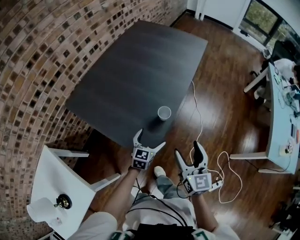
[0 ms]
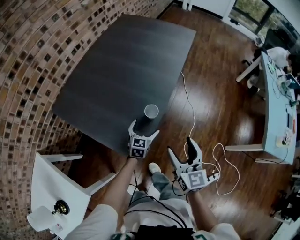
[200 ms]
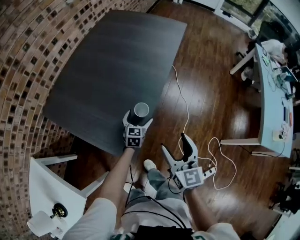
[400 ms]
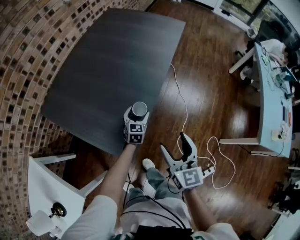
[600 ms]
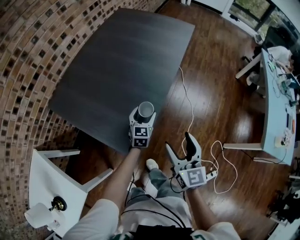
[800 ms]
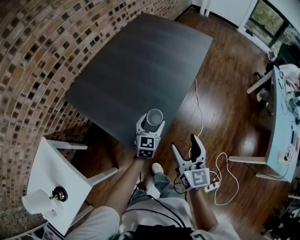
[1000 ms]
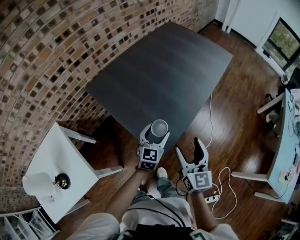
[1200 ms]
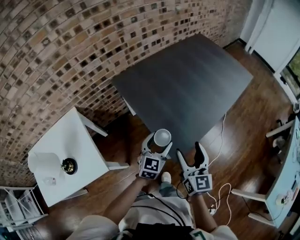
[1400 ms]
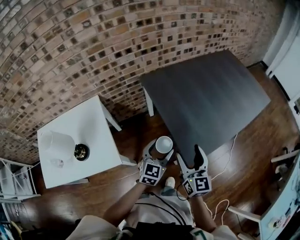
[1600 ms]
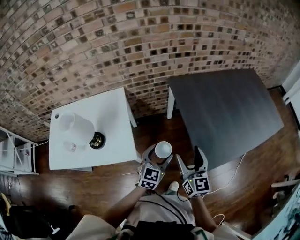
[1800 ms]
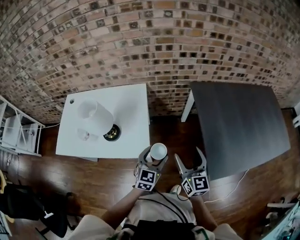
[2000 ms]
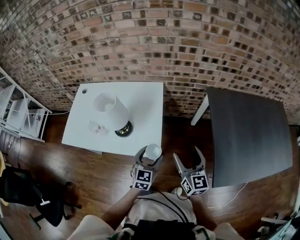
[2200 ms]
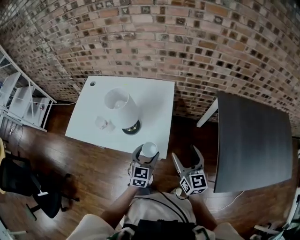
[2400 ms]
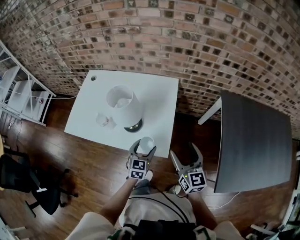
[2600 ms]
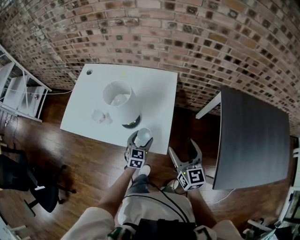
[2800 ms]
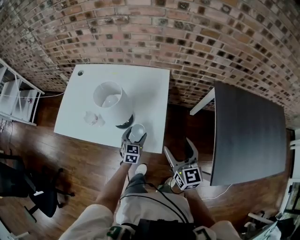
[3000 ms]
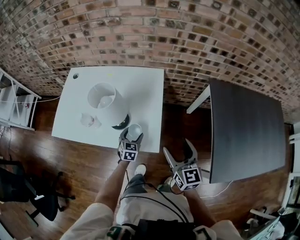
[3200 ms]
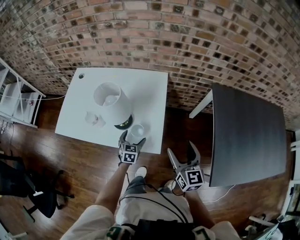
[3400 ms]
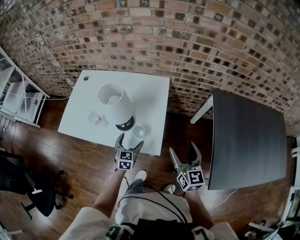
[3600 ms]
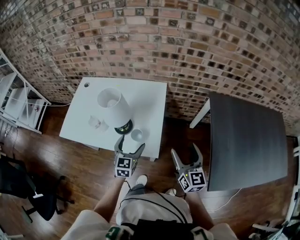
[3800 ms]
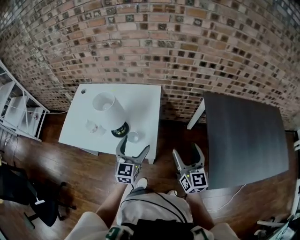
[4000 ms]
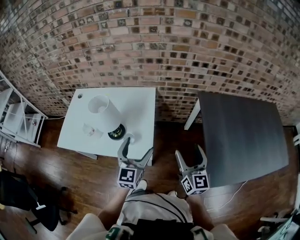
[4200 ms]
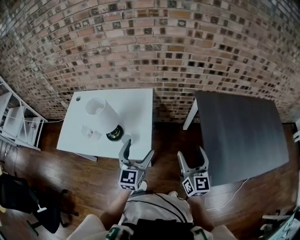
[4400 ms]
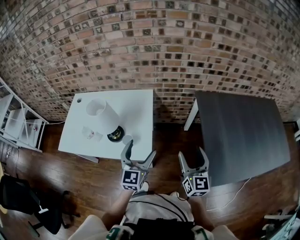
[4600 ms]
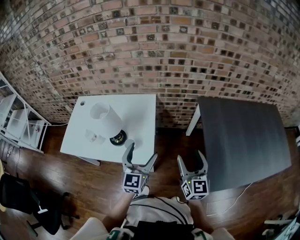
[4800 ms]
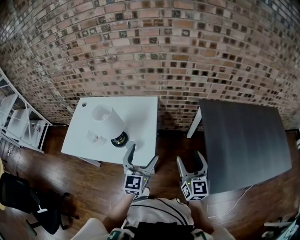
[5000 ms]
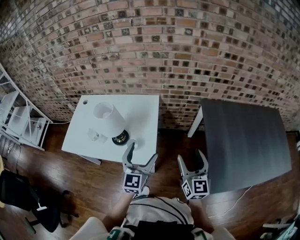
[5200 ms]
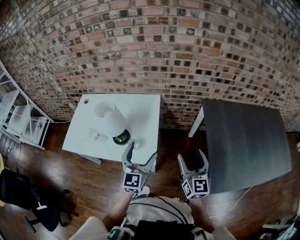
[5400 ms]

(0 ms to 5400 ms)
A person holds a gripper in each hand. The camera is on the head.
0 ms - 1400 ms: The left gripper shifts roughly 20 cm to the left, upward and backward, turns by some 30 degrees, and closes up, while the right gripper heads to the left, covering approximately 15 cm, and turns by about 20 degrees.
1400 ms - 2800 ms: Both grippers are carried about 50 cm. The right gripper turns by about 50 degrees. Meanwhile the left gripper swivels roughly 60 degrees.
2800 ms - 4000 ms: The left gripper is displaced upward by some 15 cm. Meanwhile the right gripper travels to the right and upward by approximately 10 cm.
4000 ms - 5400 ms: The right gripper changes place by about 5 cm. The left gripper heads upward and to the right, covering some 10 cm.

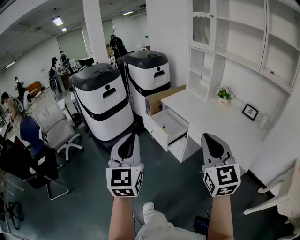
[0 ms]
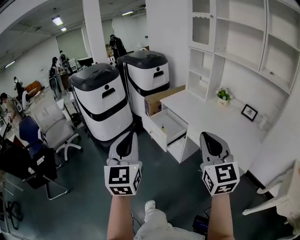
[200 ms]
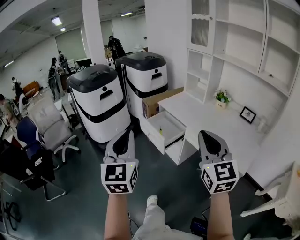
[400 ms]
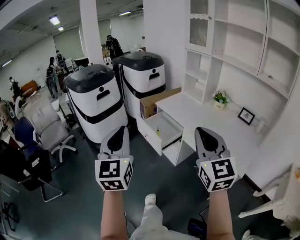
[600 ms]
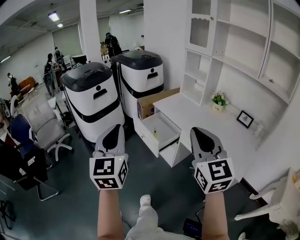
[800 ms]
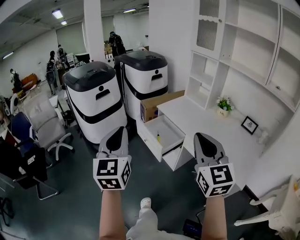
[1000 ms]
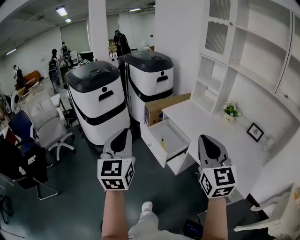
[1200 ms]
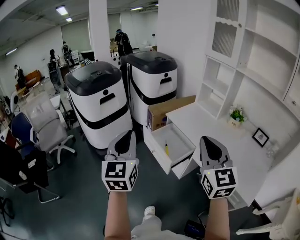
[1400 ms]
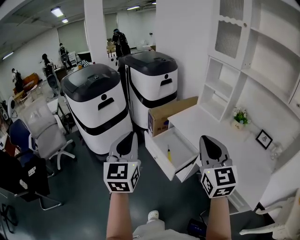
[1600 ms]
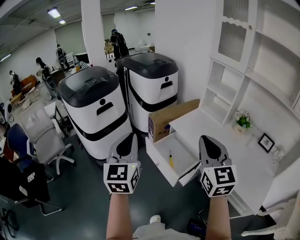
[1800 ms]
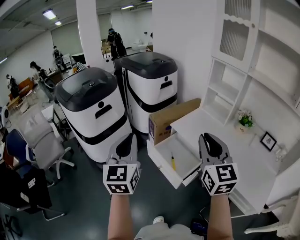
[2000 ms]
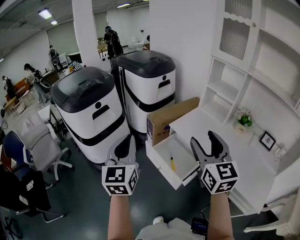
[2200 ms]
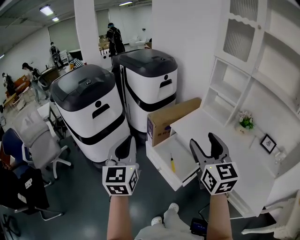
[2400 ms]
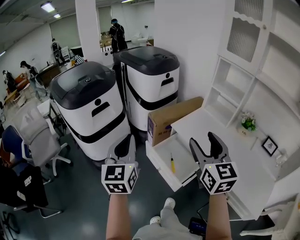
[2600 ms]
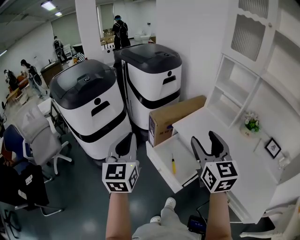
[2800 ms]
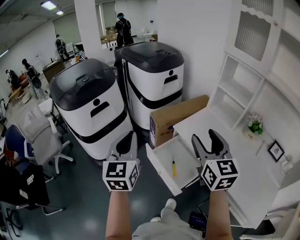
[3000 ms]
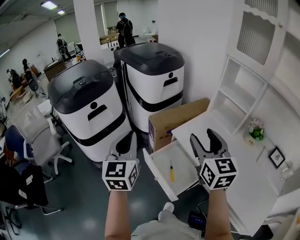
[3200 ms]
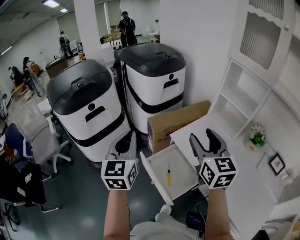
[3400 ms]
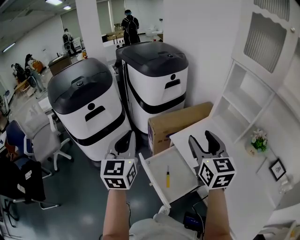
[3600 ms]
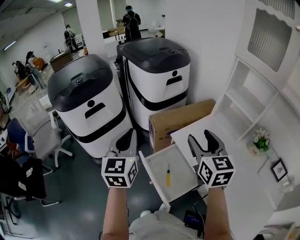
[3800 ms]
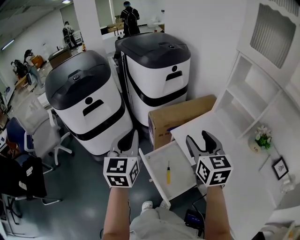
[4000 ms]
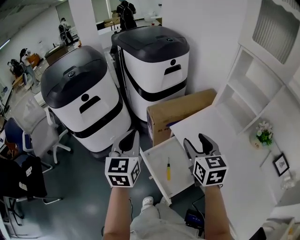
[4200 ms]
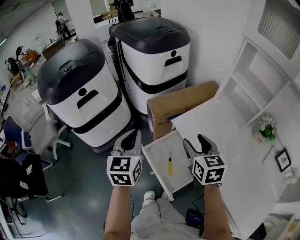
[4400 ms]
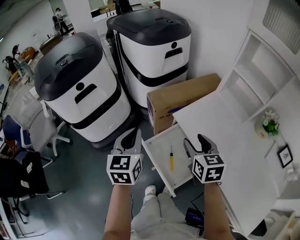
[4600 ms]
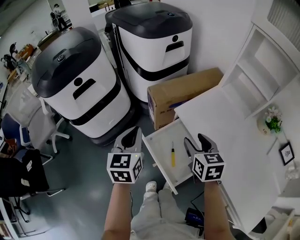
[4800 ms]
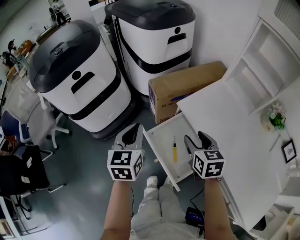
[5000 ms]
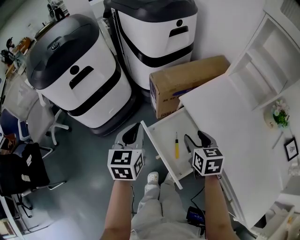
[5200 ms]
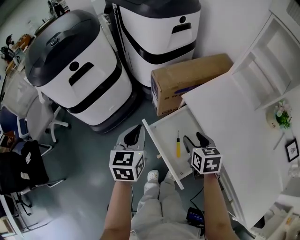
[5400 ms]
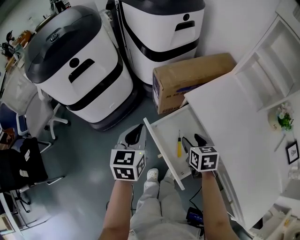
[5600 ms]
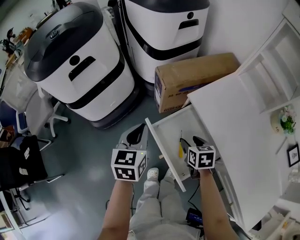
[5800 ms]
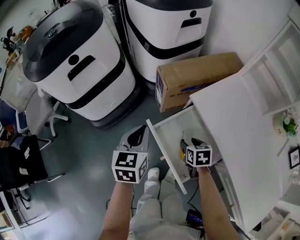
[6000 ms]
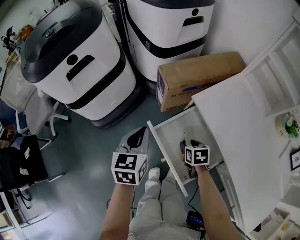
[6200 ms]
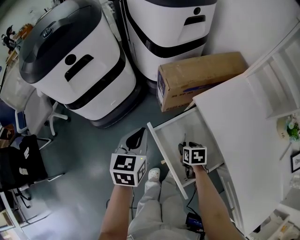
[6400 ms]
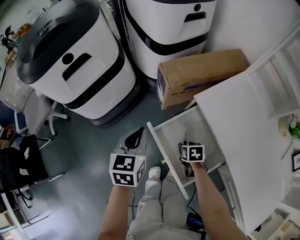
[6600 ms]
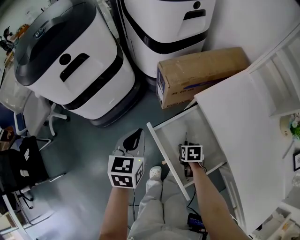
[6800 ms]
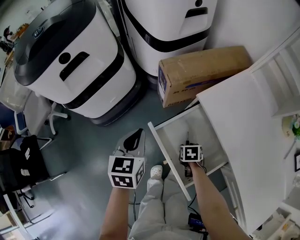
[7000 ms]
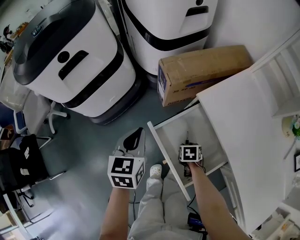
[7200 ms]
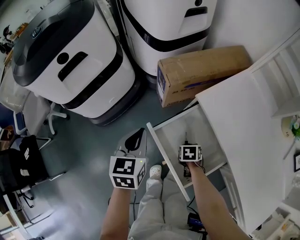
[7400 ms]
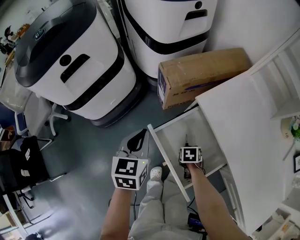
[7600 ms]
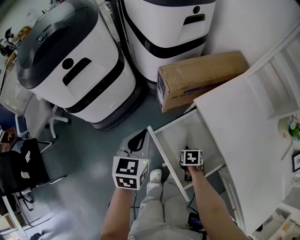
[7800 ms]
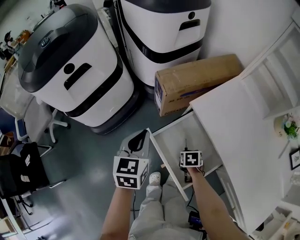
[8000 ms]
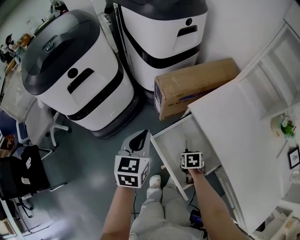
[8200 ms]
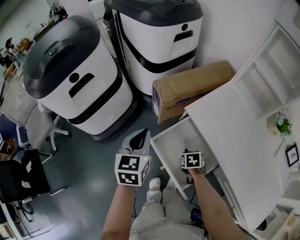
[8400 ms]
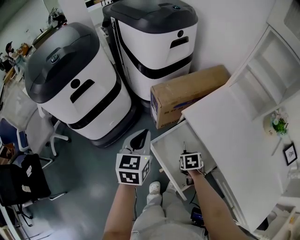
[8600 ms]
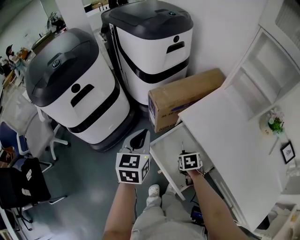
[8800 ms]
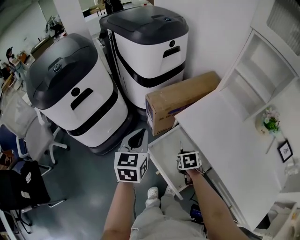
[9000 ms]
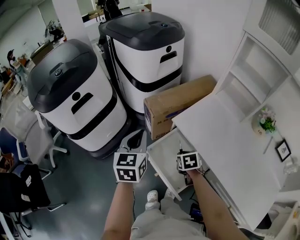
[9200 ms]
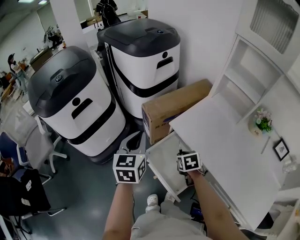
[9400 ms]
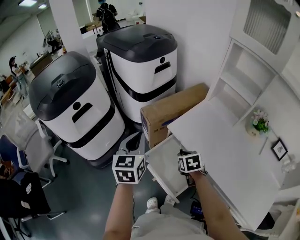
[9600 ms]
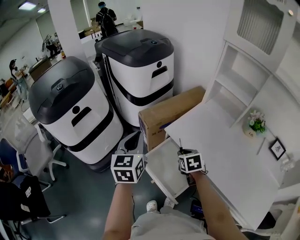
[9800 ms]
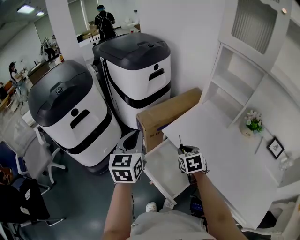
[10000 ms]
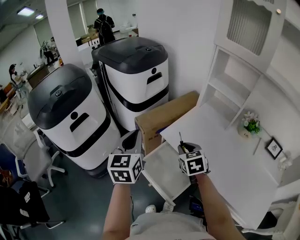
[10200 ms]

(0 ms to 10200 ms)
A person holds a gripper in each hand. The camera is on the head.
0 ms - 1400 ms: Both grippers move forward, about 20 cm.
1400 ms - 3000 ms: The grippers both shift forward by approximately 25 cm. The right gripper opens up.
3000 ms - 4400 ms: The right gripper heads downward and forward, covering about 20 cm, and changes its angle by some 20 degrees, while the left gripper travels downward, forward and to the right by about 15 cm.
4400 ms - 5800 ms: The right gripper shifts about 25 cm downward, and turns by roughly 30 degrees; the left gripper goes roughly 15 cm downward.
5800 ms - 7200 ms: The right gripper is displaced downward by some 15 cm, and rotates about 20 degrees; the left gripper travels downward by some 5 cm.
7200 ms - 8800 ms: The two grippers go about 10 cm upward.
8800 ms - 10200 ms: The left gripper goes approximately 15 cm upward, while the right gripper shifts roughly 25 cm upward, and changes its angle by roughly 30 degrees.

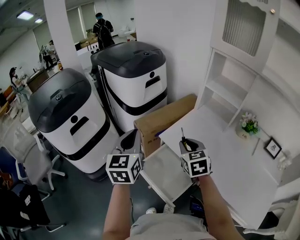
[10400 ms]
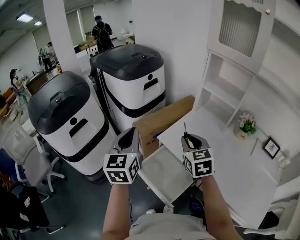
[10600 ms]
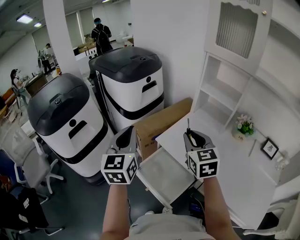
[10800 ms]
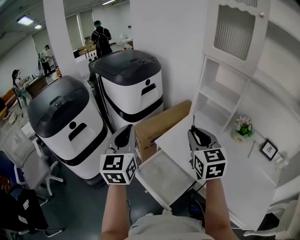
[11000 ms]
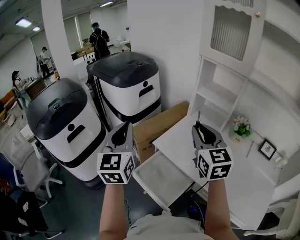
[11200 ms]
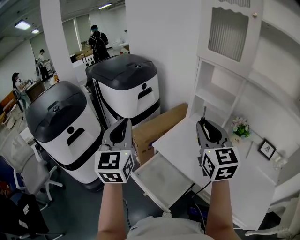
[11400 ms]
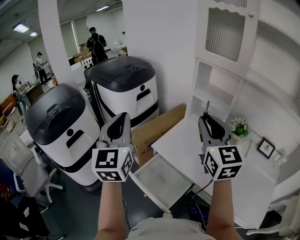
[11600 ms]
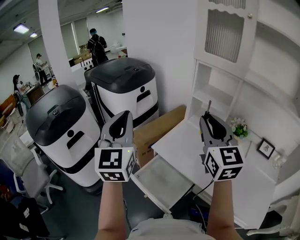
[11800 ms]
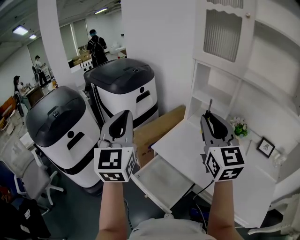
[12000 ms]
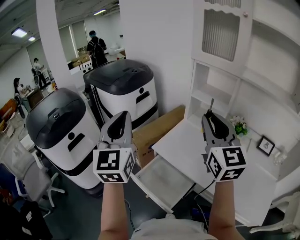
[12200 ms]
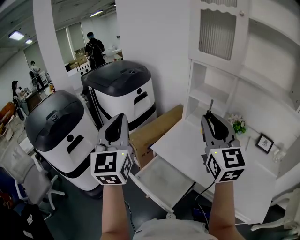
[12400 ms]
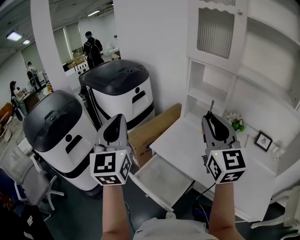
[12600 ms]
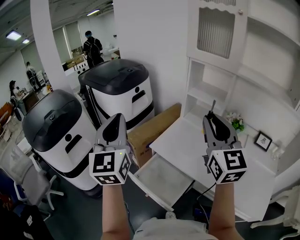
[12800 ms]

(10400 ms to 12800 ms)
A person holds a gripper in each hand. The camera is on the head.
10400 ms - 11600 ms: The right gripper travels upward by some 25 cm, and tilts its fingers roughly 30 degrees upward; the left gripper heads upward, covering about 15 cm, and swivels approximately 20 degrees.
11600 ms - 12800 ms: There are only small adjustments of the grippers.

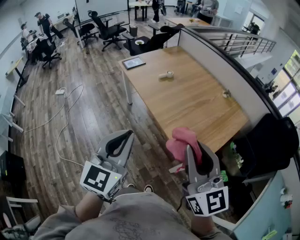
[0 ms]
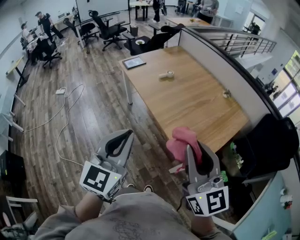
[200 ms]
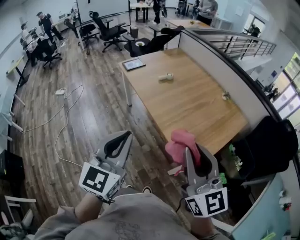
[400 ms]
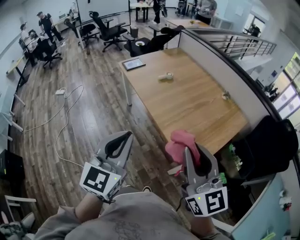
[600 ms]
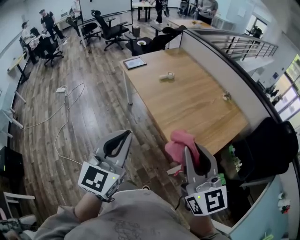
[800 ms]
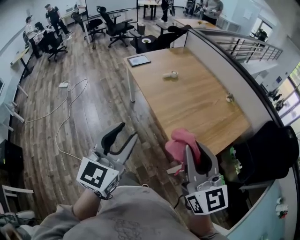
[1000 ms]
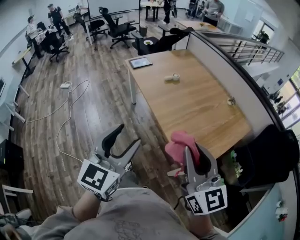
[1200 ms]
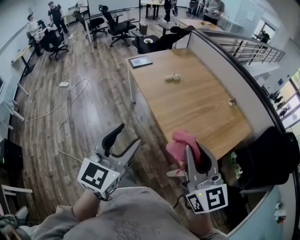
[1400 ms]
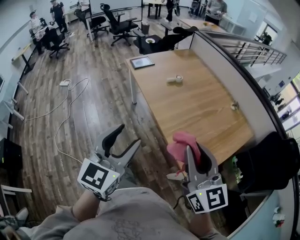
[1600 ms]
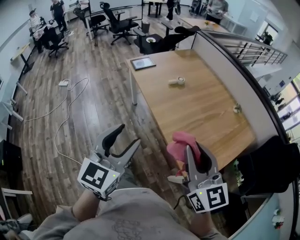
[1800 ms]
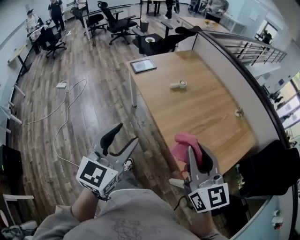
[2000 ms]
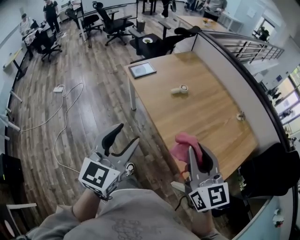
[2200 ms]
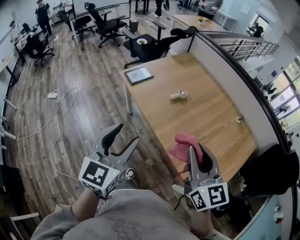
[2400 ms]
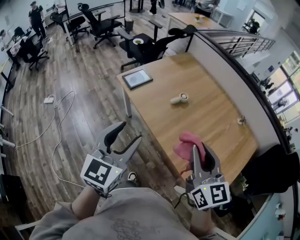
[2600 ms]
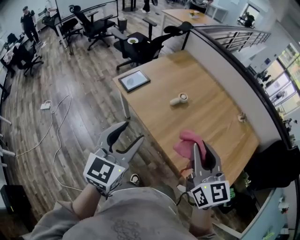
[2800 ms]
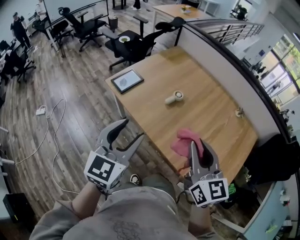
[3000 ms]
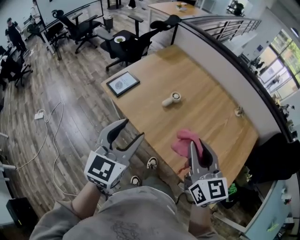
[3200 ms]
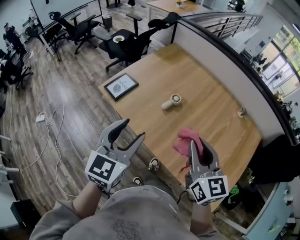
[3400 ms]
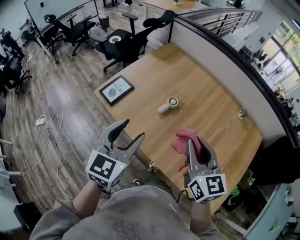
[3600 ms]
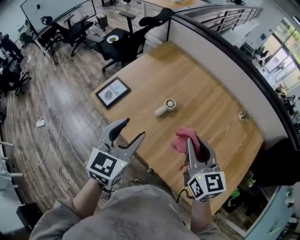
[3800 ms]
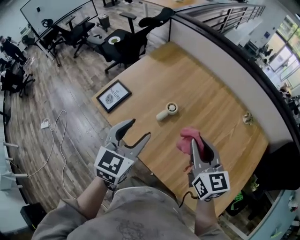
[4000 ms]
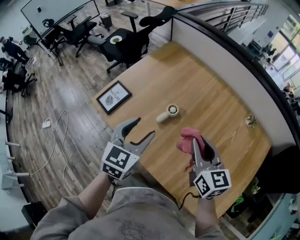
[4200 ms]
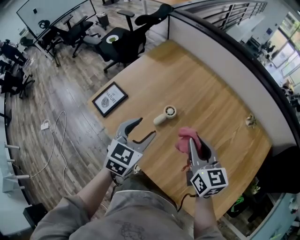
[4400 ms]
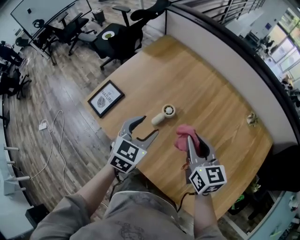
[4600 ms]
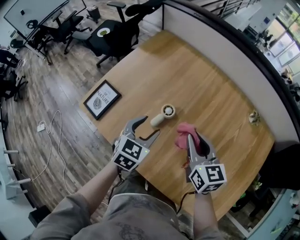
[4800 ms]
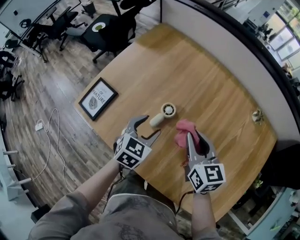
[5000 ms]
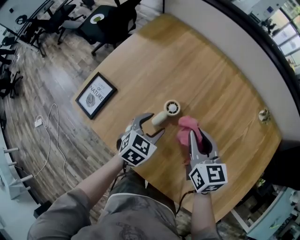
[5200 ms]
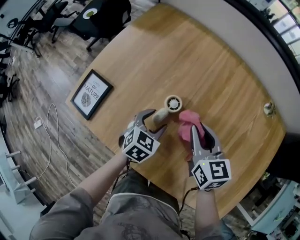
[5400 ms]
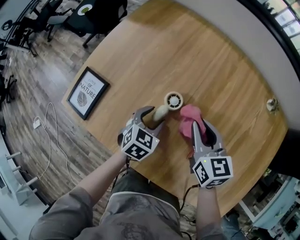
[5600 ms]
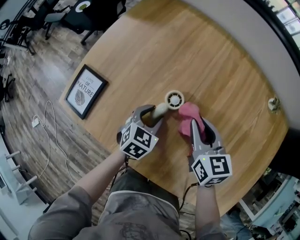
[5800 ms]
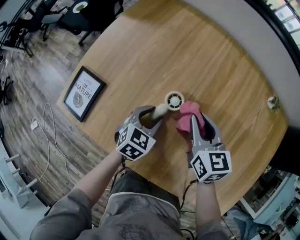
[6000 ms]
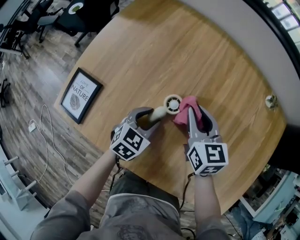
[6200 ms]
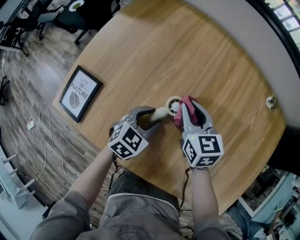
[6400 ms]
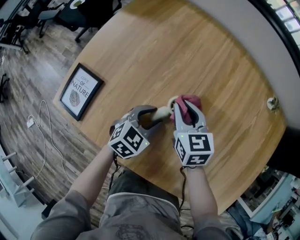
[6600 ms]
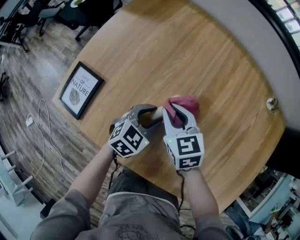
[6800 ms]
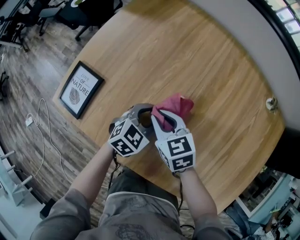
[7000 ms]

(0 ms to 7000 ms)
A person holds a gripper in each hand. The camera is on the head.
0 ms - 1400 ms: The left gripper opens, while the right gripper is displaced forward by about 5 cm.
1400 ms - 2800 ms: The two grippers go some 40 cm forward and to the left.
2800 ms - 4200 ms: The right gripper moves forward and downward, some 30 cm. Meanwhile the left gripper is displaced forward by some 30 cm.
4200 ms - 5600 ms: Both grippers move downward and forward, about 25 cm. The left gripper changes its angle by about 30 degrees.
5600 ms - 7000 ms: The right gripper shifts about 15 cm to the left and downward, and swivels about 20 degrees.
